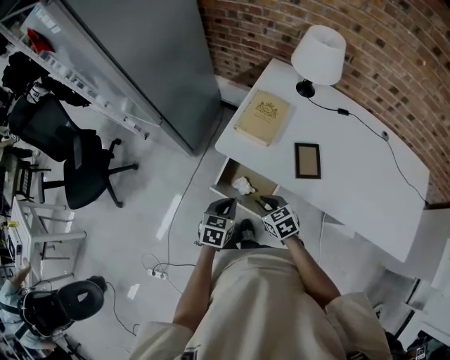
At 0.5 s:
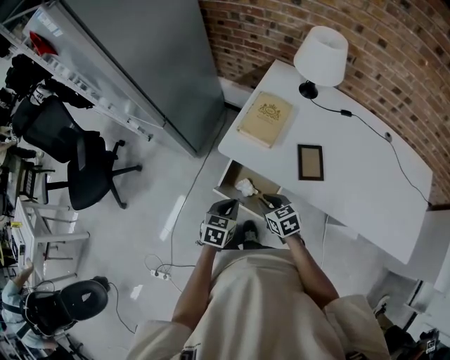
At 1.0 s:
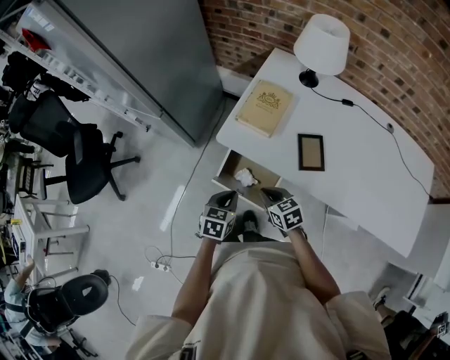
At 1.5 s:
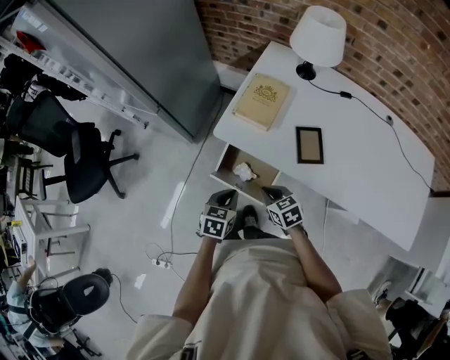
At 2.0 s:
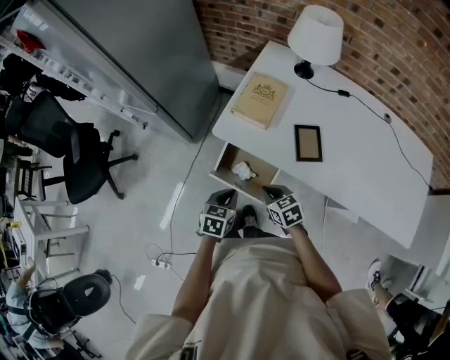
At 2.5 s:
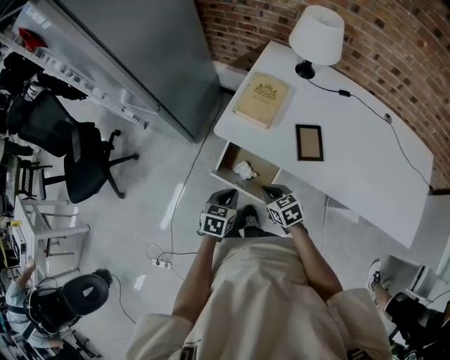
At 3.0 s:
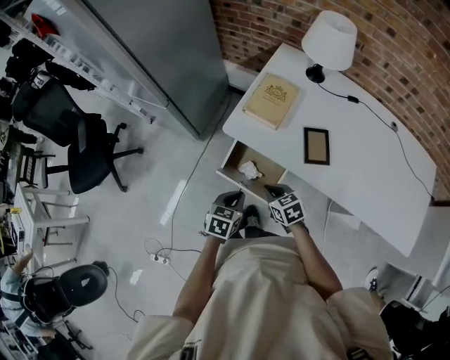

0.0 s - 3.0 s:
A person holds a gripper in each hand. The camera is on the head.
0.0 s - 3.0 s: The grippers make only small movements.

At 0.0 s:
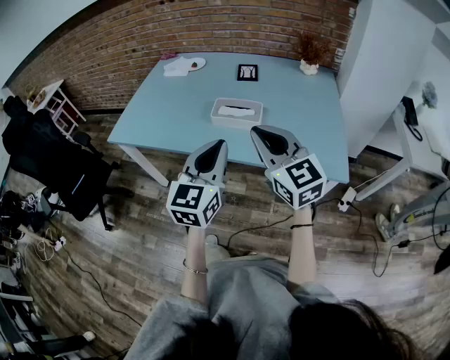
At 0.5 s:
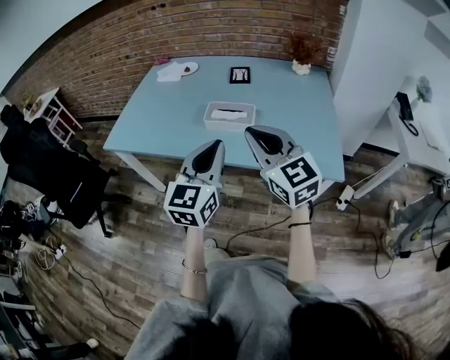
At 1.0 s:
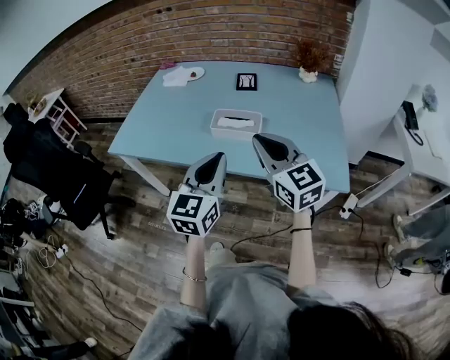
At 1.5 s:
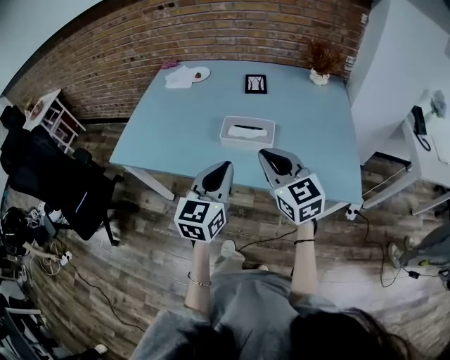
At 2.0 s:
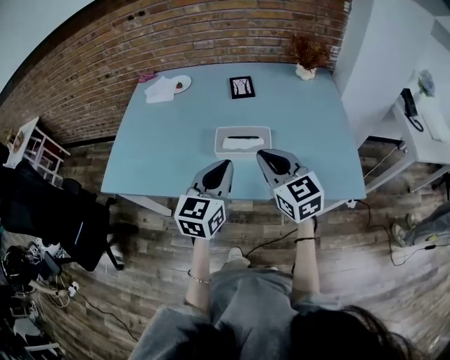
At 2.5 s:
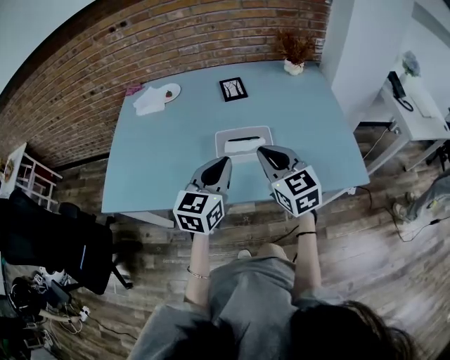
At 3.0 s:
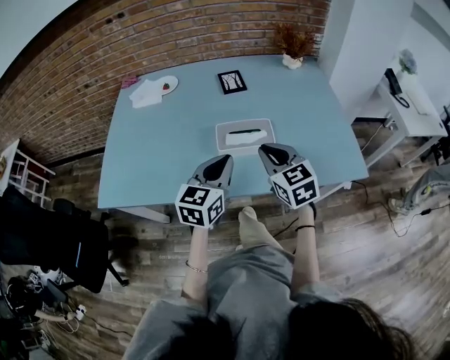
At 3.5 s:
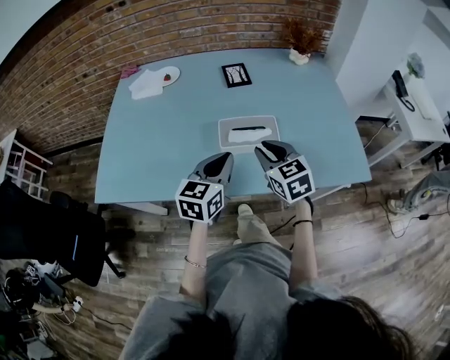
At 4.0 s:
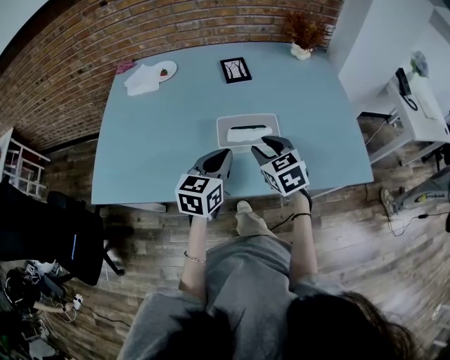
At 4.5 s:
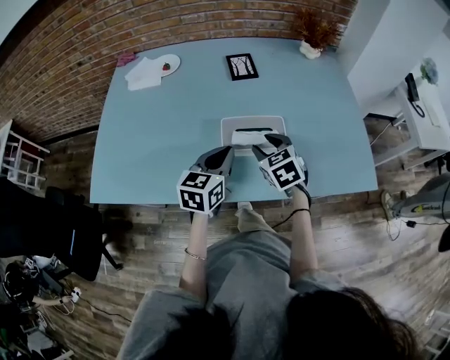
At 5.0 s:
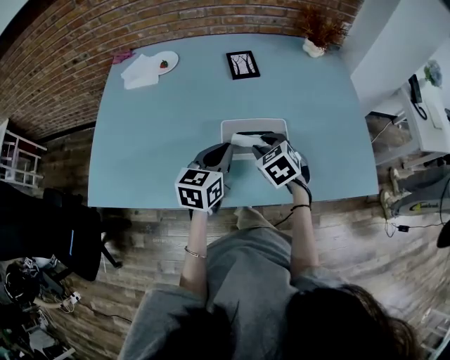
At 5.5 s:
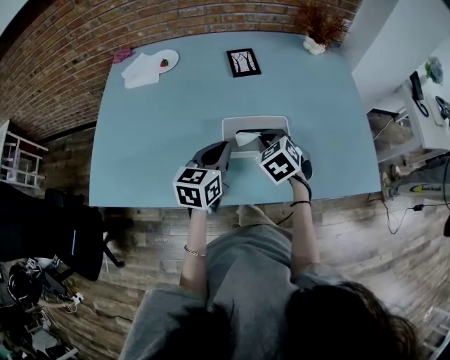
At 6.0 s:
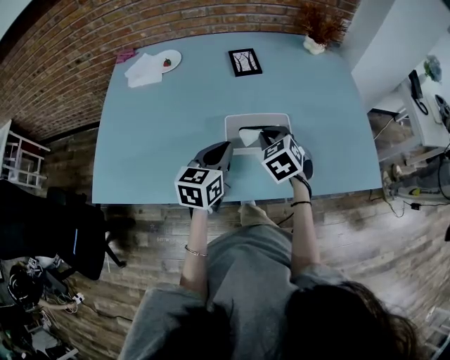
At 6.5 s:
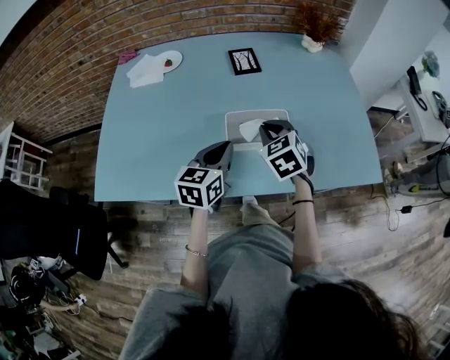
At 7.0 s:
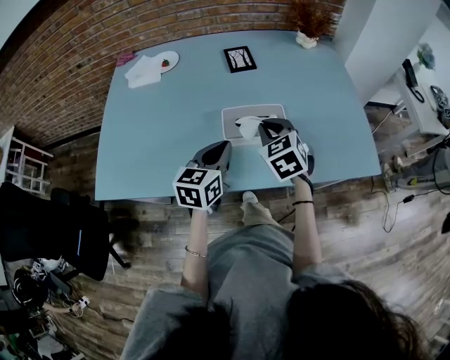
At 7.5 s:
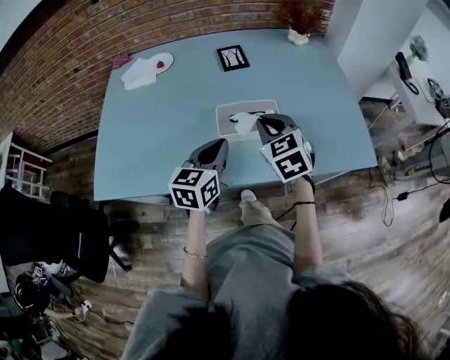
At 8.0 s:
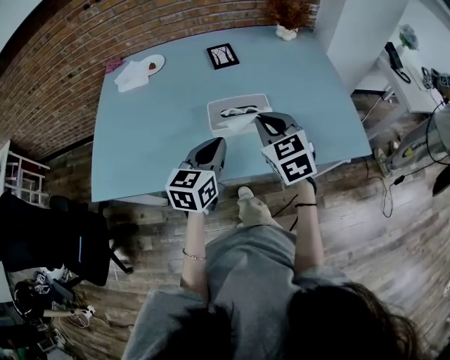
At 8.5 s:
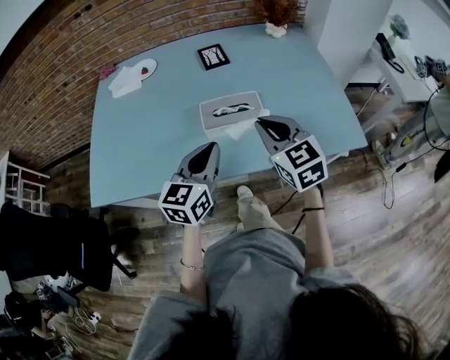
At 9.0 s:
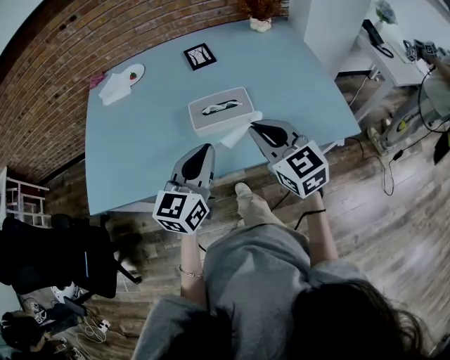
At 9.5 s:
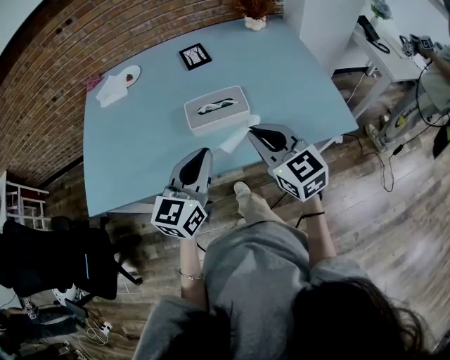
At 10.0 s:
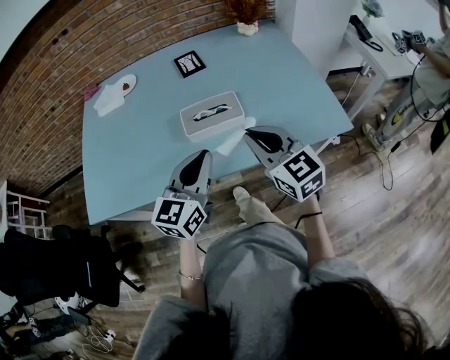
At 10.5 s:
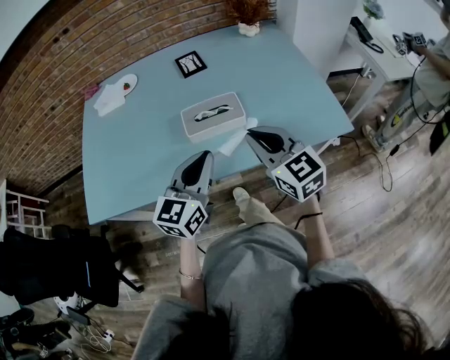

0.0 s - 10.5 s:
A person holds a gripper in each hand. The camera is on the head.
0.0 s - 2.0 s: The left gripper heads forward, covering roughly 15 cm; the right gripper shifts some 15 cm forward and downward.
2.0 s - 4.0 s: Both grippers travel together downward and forward, roughly 15 cm. The right gripper turns by about 20 degrees, and opens.
4.0 s - 6.5 s: The right gripper is displaced forward by approximately 5 cm, and closes its fingers.
6.5 s - 8.5 s: The left gripper heads backward and upward, covering about 10 cm; the right gripper is displaced backward, upward and to the right by some 15 cm, and rotates approximately 20 degrees.
8.5 s - 10.5 s: There are only small adjustments of the grippers.

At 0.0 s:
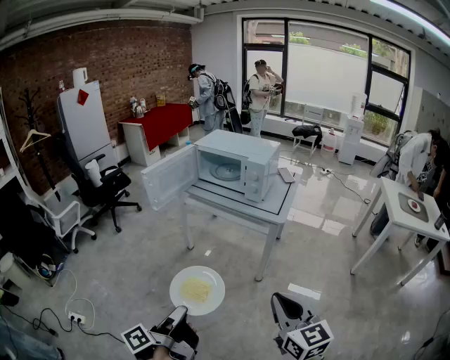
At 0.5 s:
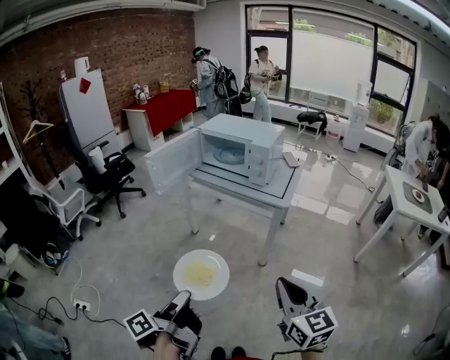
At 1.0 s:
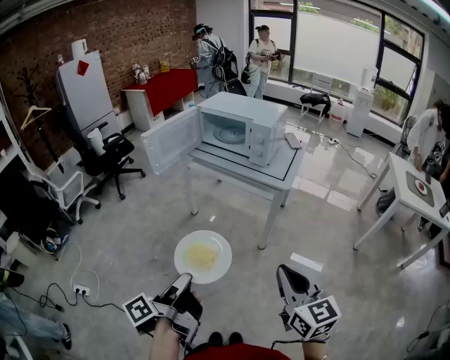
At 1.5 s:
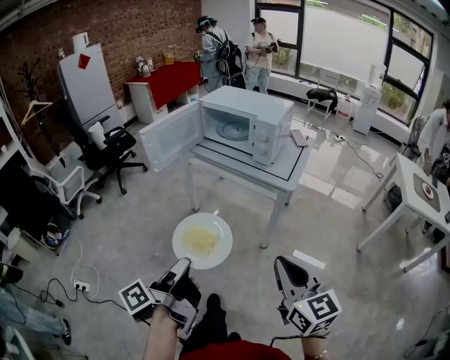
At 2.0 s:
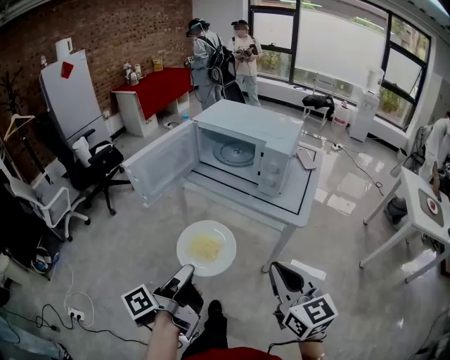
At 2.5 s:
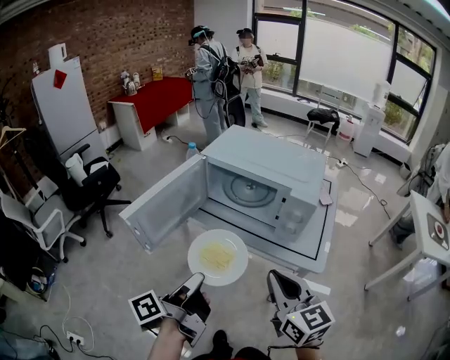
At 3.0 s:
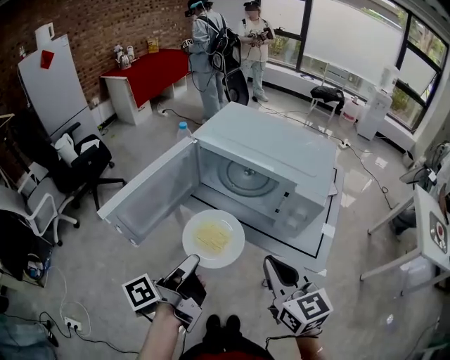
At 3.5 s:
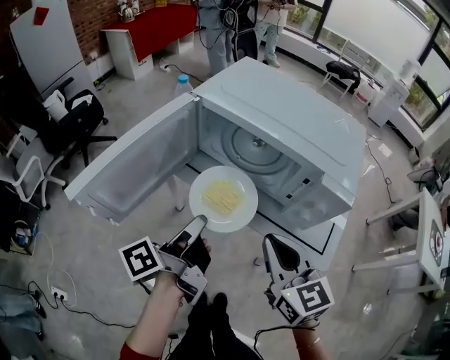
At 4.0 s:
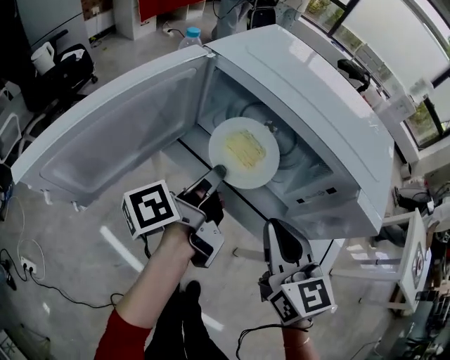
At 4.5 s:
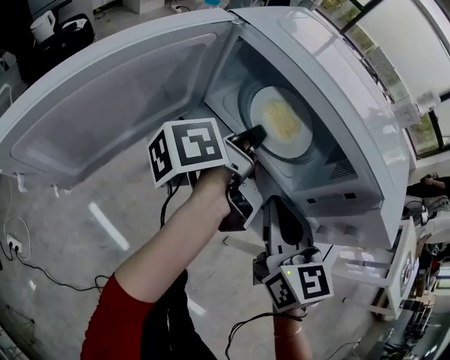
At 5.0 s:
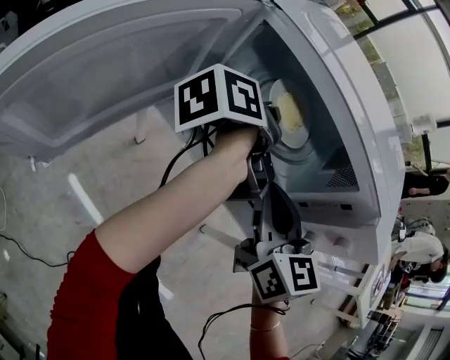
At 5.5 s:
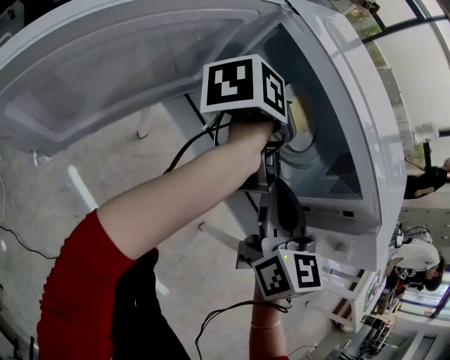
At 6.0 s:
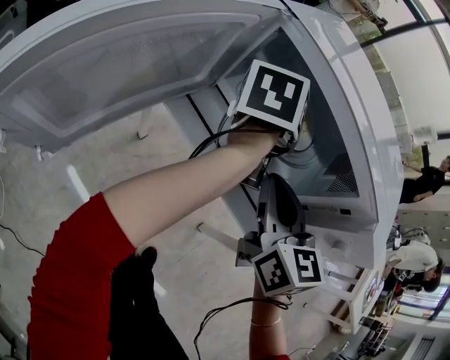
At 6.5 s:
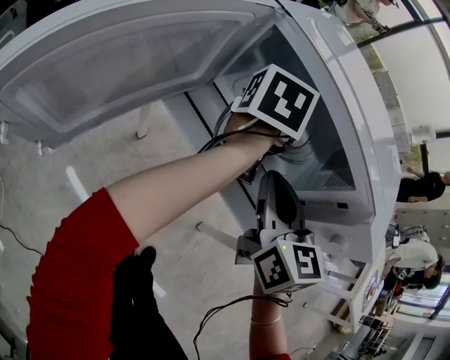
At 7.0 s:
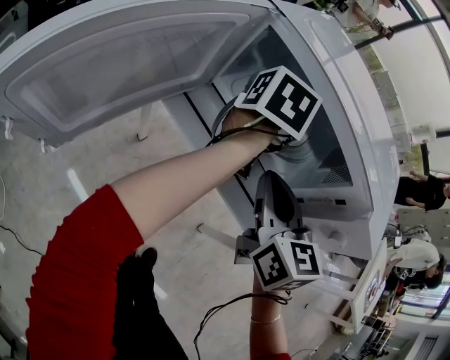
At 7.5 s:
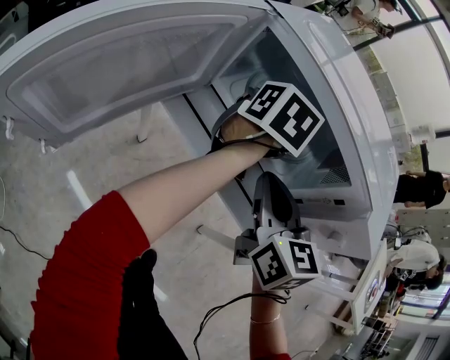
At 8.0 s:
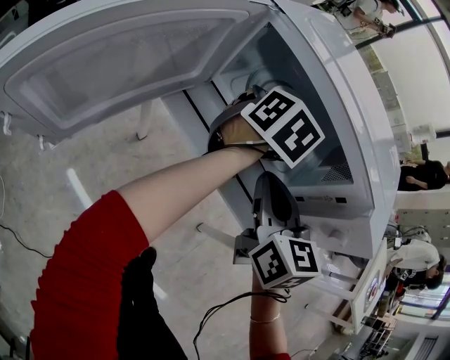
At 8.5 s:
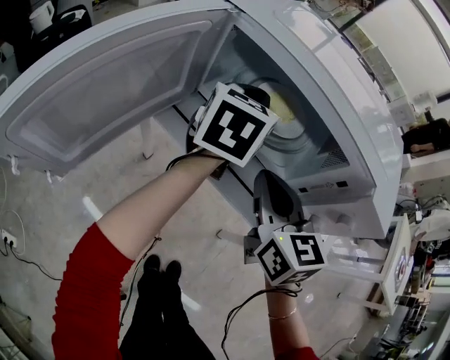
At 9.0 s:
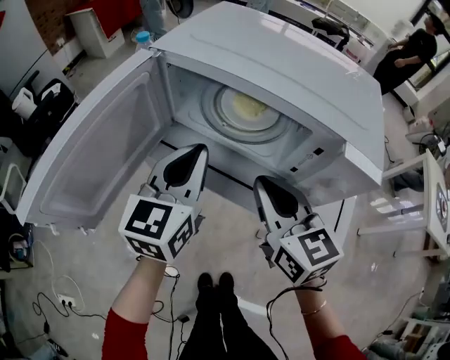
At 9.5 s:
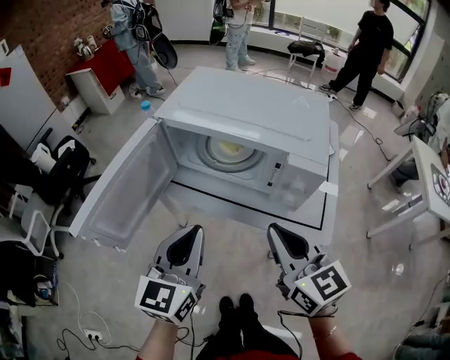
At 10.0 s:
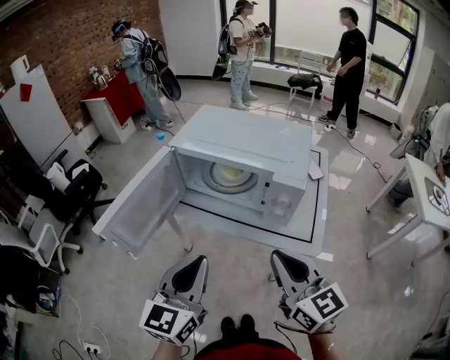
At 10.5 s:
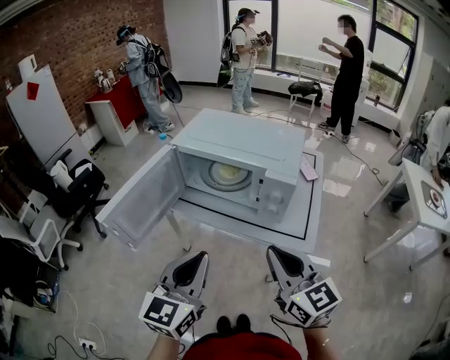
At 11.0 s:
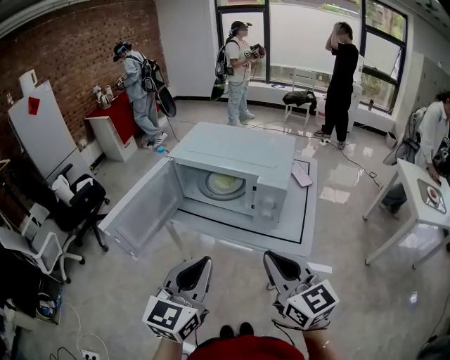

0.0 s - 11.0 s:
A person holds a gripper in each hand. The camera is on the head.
0.0 s - 2.0 s: Both grippers move forward, about 20 cm.
2.0 s - 3.5 s: Both grippers travel together forward, some 30 cm.
3.5 s - 5.5 s: The right gripper moves forward, roughly 15 cm. Meanwhile the left gripper travels forward by some 25 cm, and changes its angle by about 30 degrees.
5.5 s - 7.5 s: The left gripper twists some 50 degrees clockwise, seen from behind.
7.5 s - 9.0 s: The left gripper moves backward, upward and to the left, about 15 cm, turns by roughly 30 degrees, and closes, while the right gripper ends up some 5 cm from where it was.
9.0 s - 11.0 s: Both grippers travel together backward and upward, approximately 25 cm.

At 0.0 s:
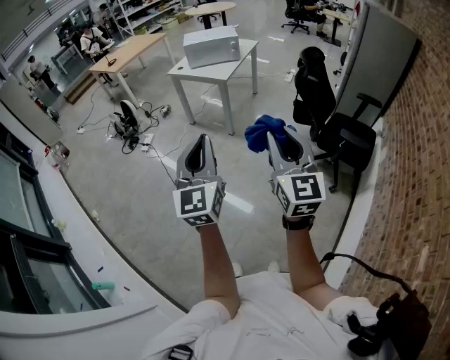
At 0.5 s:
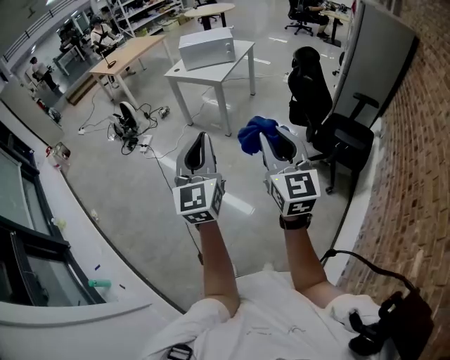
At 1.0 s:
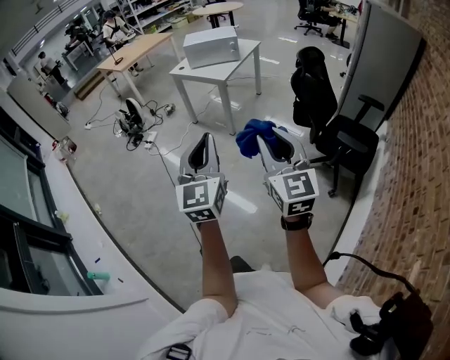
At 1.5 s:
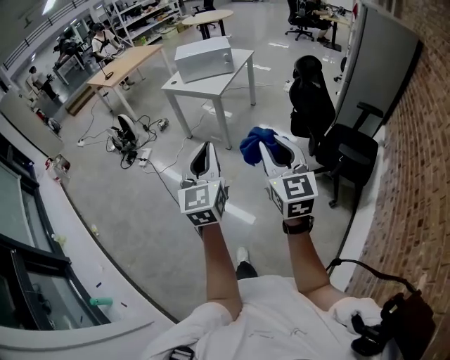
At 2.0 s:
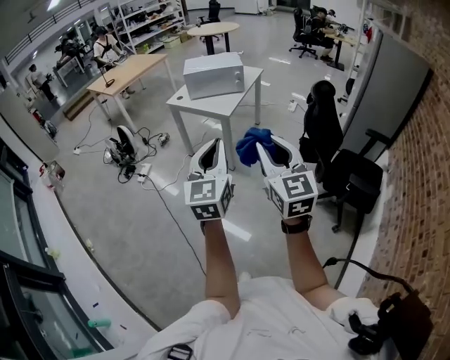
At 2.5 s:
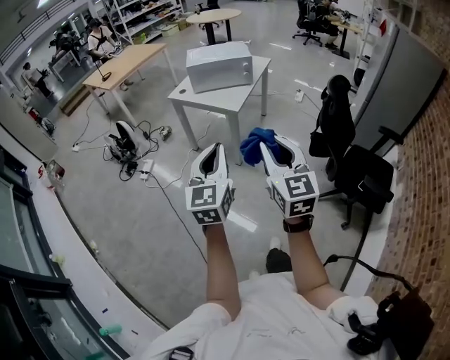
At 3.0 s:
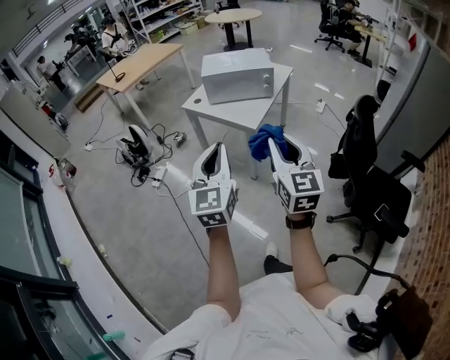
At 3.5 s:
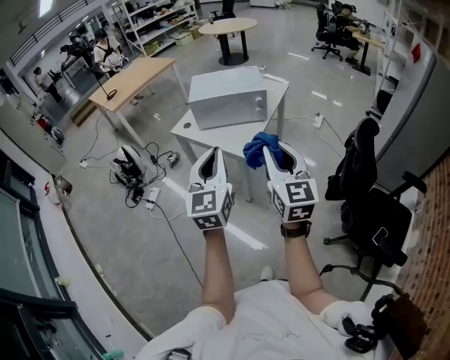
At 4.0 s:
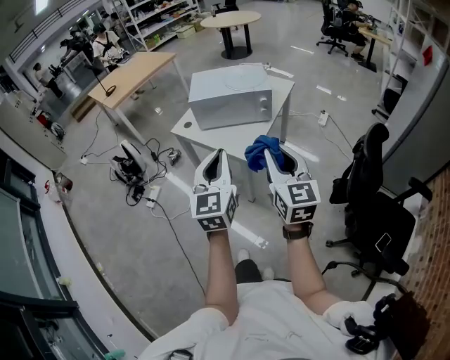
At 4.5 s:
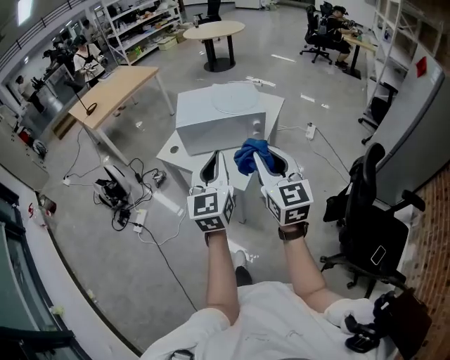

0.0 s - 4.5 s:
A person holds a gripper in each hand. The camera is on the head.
0.0 s - 2.0 s: Both grippers move forward, about 25 cm.
2.0 s - 4.5 s: The pair of grippers is taken forward, approximately 50 cm.
